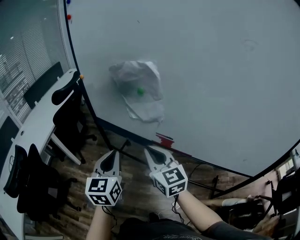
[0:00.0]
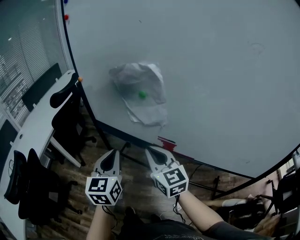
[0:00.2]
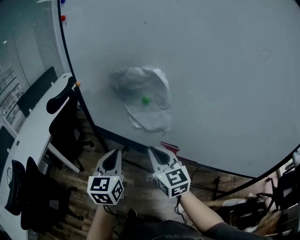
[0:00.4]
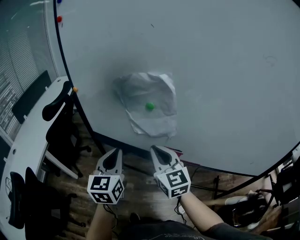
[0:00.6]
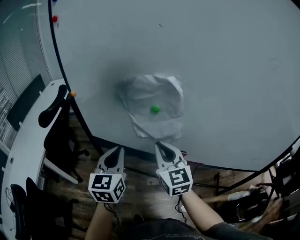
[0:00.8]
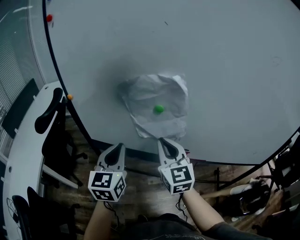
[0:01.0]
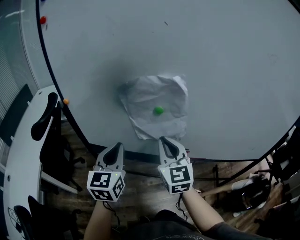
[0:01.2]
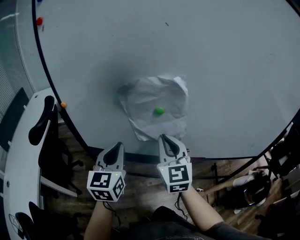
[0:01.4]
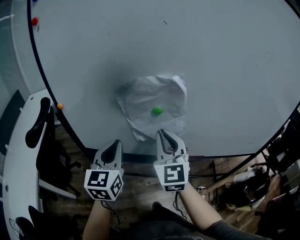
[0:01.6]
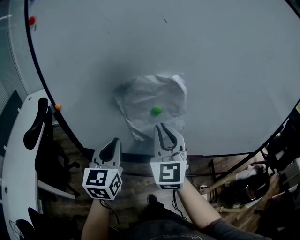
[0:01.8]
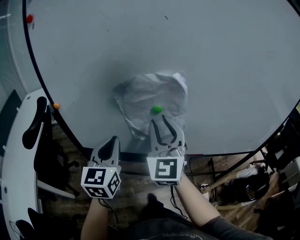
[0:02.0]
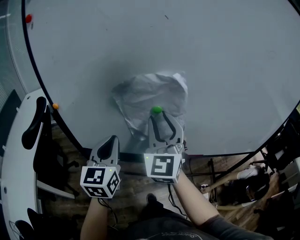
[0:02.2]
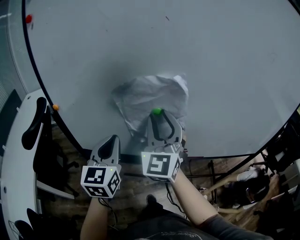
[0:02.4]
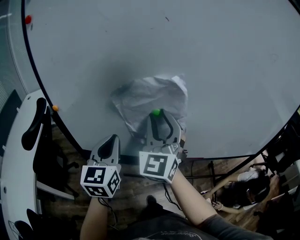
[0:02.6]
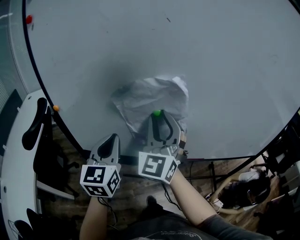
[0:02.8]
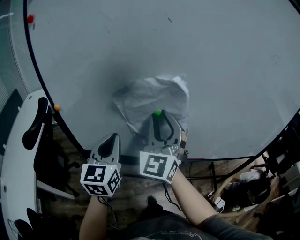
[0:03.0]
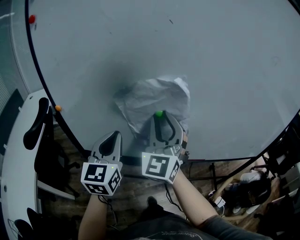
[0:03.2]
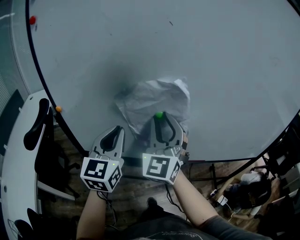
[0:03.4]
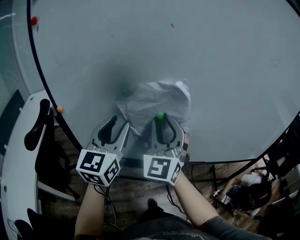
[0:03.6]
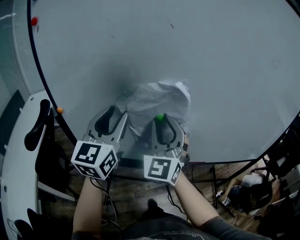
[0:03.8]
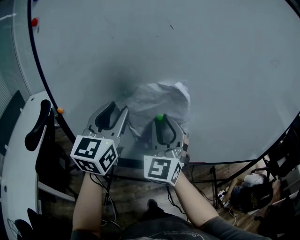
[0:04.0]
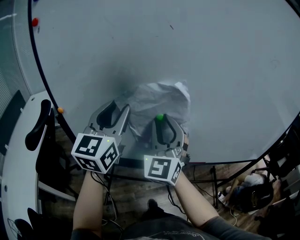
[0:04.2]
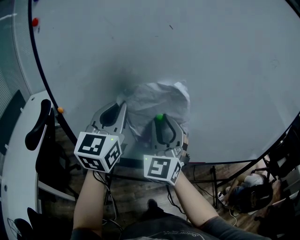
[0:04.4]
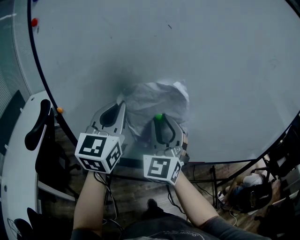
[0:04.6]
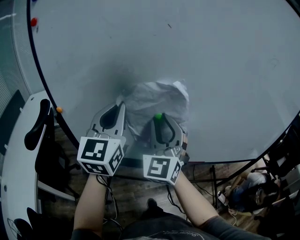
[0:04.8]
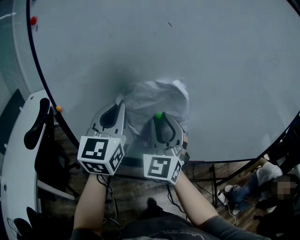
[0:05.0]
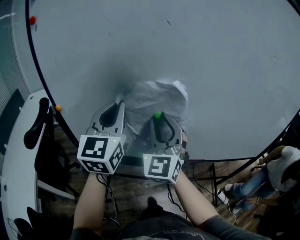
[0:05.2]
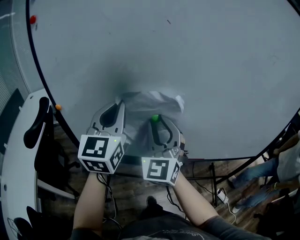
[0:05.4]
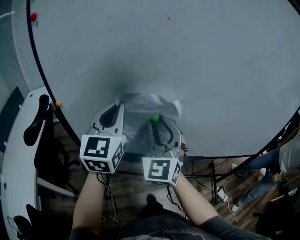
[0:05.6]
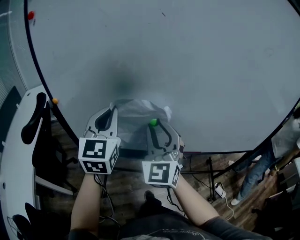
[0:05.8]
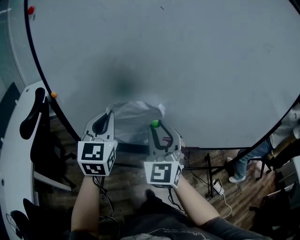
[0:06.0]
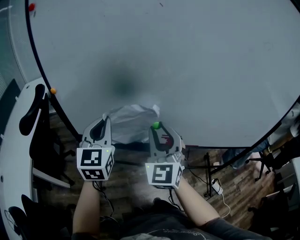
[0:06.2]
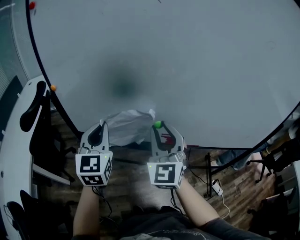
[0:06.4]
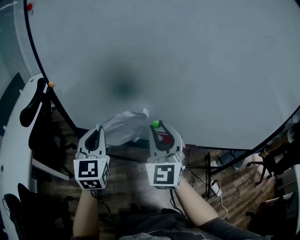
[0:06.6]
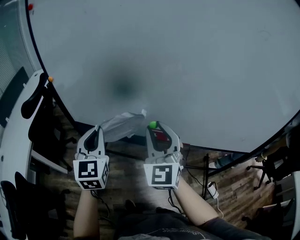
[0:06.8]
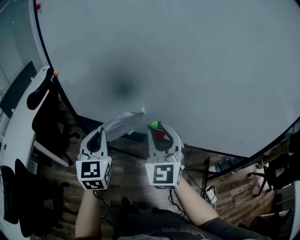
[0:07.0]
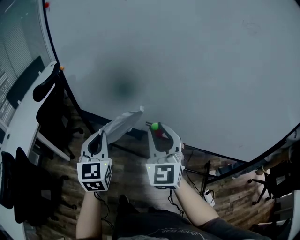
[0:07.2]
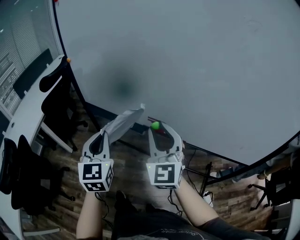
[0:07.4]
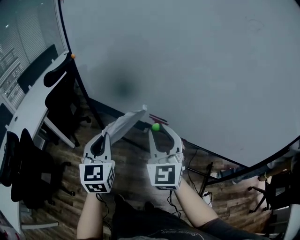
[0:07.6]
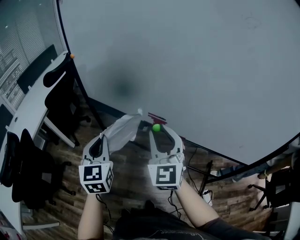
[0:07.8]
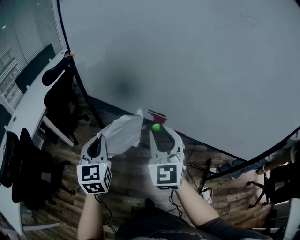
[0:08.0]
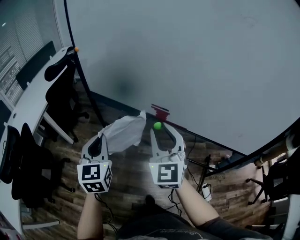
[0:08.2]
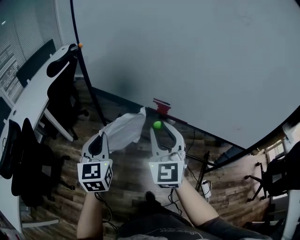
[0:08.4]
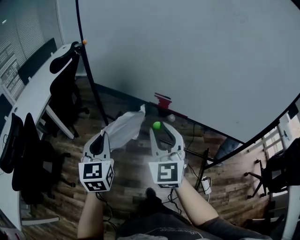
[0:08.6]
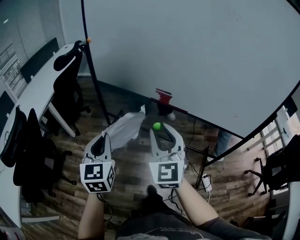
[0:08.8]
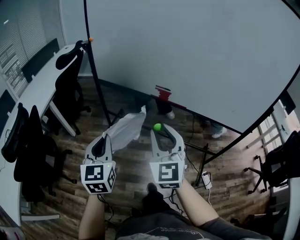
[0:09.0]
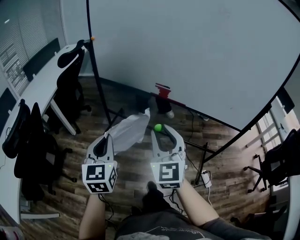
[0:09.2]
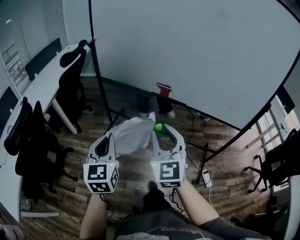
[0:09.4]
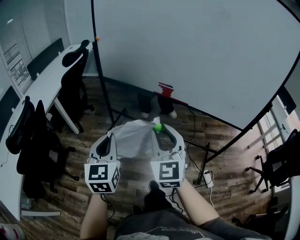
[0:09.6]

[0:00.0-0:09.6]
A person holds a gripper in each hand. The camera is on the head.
0:00.0 to 0:01.6: The right gripper changes place by approximately 15 cm, and swivels about 40 degrees, while the left gripper shifts by some 20 cm, and changes its angle by roughly 30 degrees.
0:01.6 to 0:03.2: The right gripper moves upward, approximately 5 cm, swivels roughly 20 degrees, and opens up.
0:03.2 to 0:04.8: The left gripper is displaced upward by about 10 cm, and opens, then closes again.
0:04.8 to 0:06.4: The grippers both shift downward and backward by about 15 cm.
0:06.4 to 0:08.0: The left gripper goes approximately 20 cm backward, and rotates about 30 degrees. The right gripper travels backward and to the right by about 15 cm, and swivels about 20 degrees.
0:08.0 to 0:09.6: Both grippers move backward, roughly 20 cm.

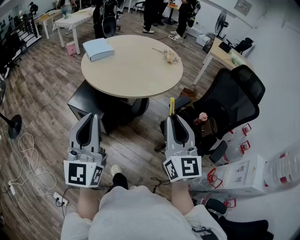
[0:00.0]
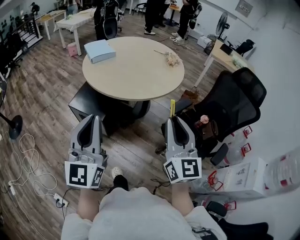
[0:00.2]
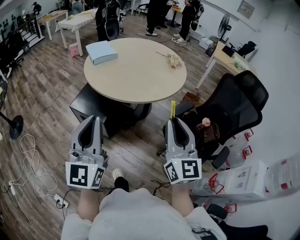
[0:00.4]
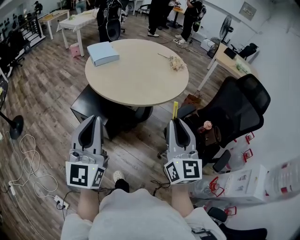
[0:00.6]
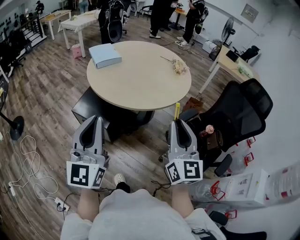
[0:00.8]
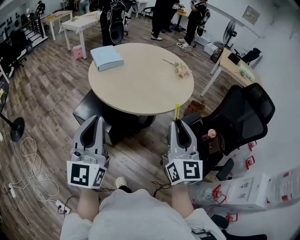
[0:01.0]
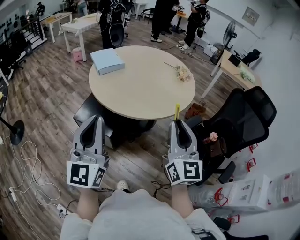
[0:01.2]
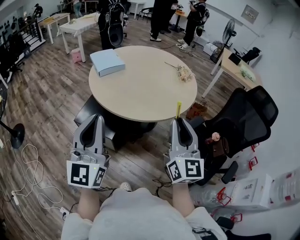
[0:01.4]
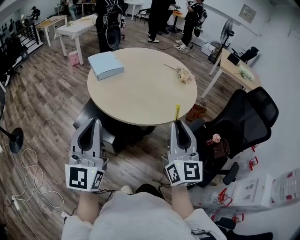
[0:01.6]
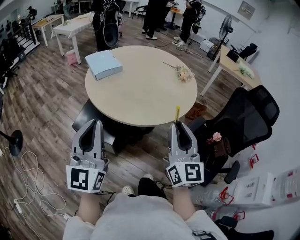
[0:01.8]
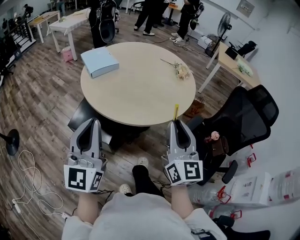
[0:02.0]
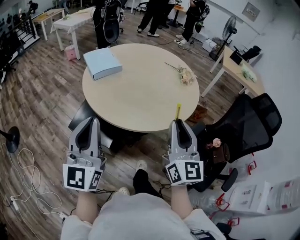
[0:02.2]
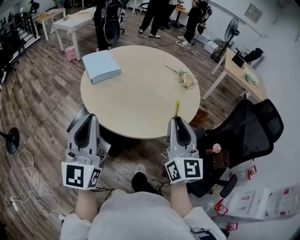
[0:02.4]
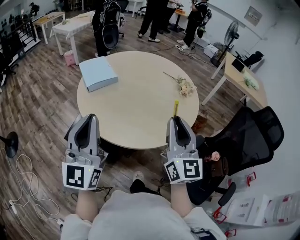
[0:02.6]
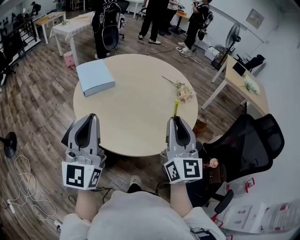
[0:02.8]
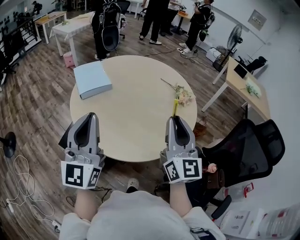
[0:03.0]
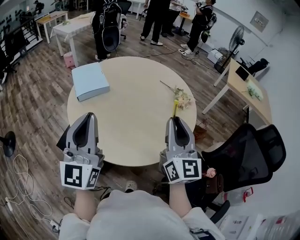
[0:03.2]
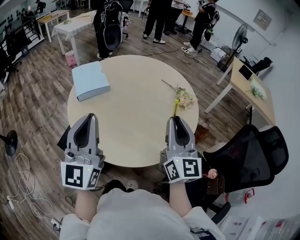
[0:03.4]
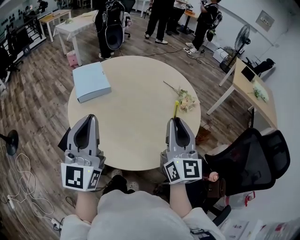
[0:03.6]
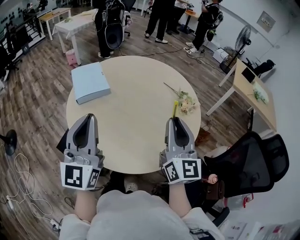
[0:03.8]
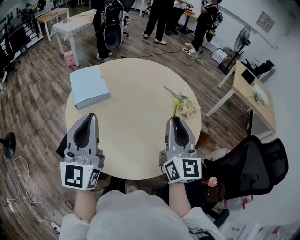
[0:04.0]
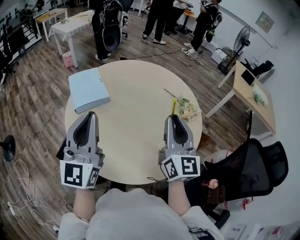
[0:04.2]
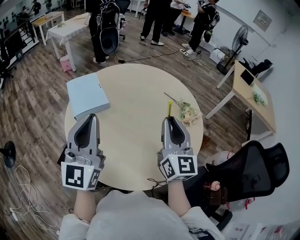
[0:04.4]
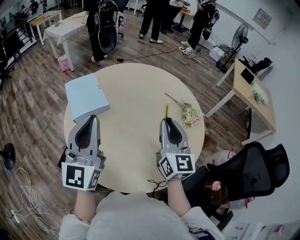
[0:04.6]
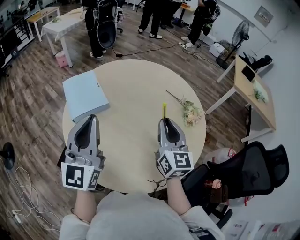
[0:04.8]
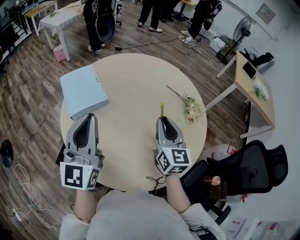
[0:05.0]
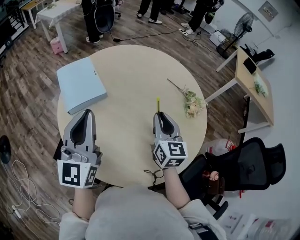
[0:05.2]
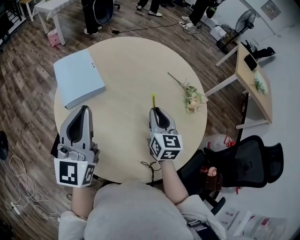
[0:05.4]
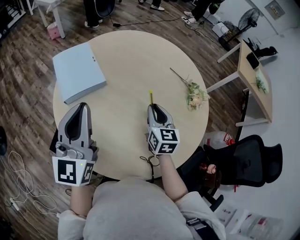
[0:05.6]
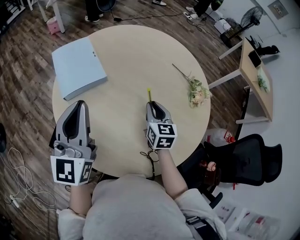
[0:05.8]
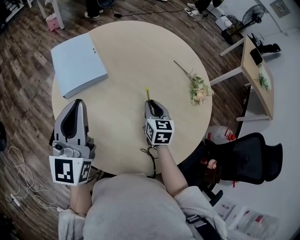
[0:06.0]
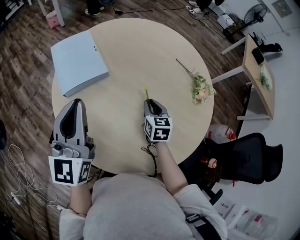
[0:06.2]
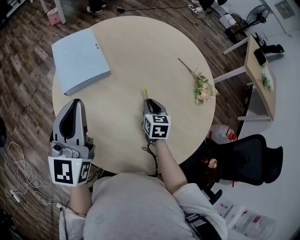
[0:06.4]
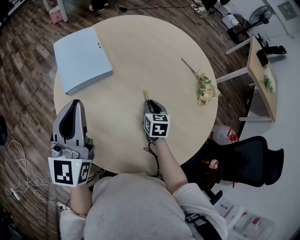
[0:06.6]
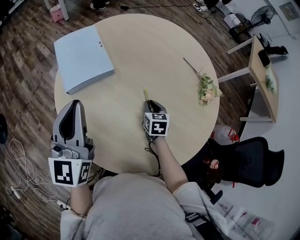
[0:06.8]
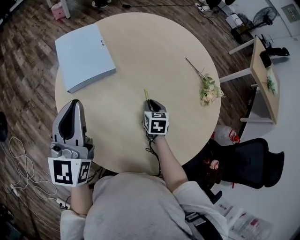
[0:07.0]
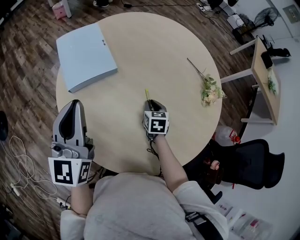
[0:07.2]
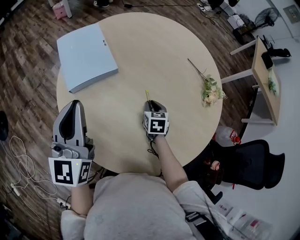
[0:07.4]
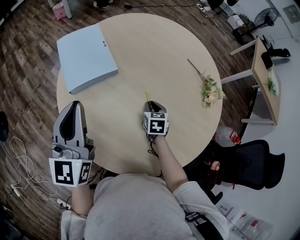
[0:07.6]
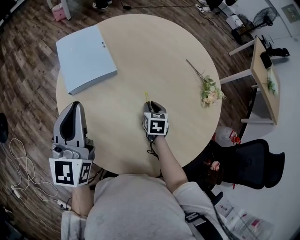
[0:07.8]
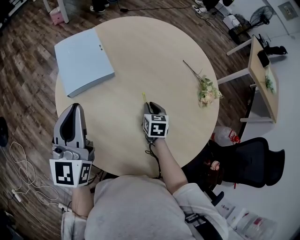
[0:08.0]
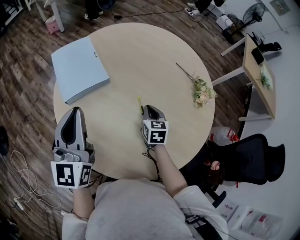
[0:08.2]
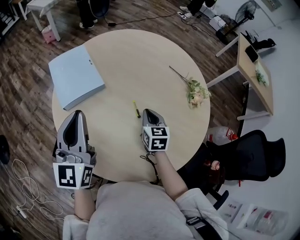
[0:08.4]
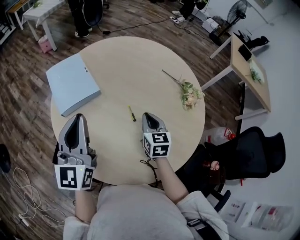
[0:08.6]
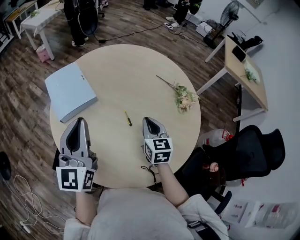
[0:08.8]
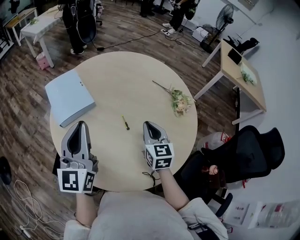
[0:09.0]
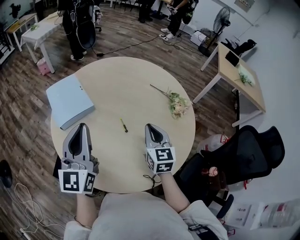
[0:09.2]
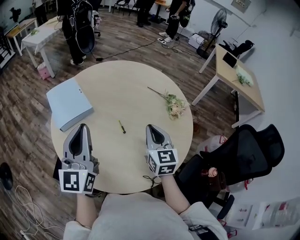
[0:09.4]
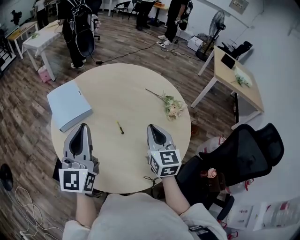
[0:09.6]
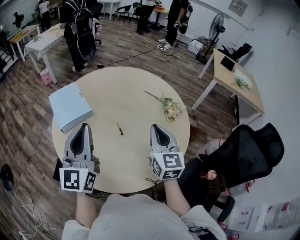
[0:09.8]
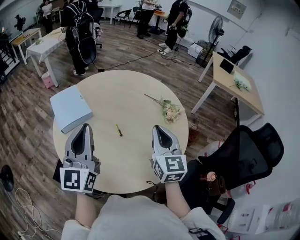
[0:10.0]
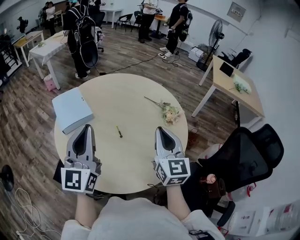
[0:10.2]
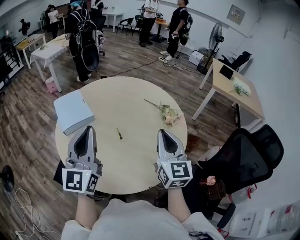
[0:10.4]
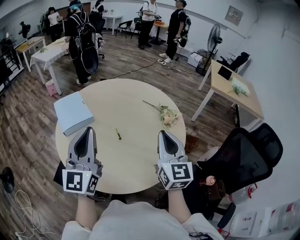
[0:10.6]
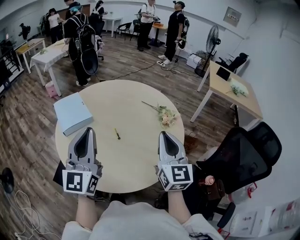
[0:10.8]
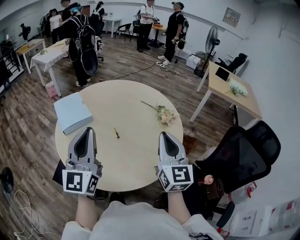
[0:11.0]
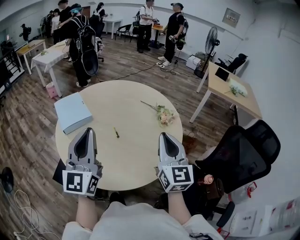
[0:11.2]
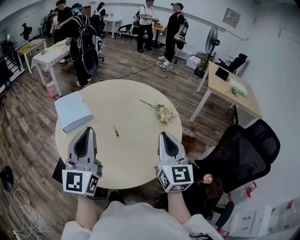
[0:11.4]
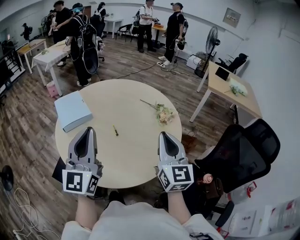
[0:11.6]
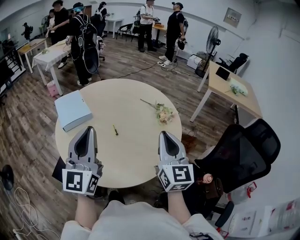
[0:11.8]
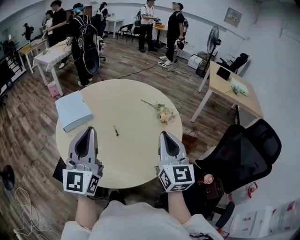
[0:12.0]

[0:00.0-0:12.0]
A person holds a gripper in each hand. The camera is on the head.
0:00.0 to 0:01.6: The grippers both shift forward and to the left by roughly 20 cm.
0:01.6 to 0:03.0: The grippers both shift forward by approximately 25 cm.
0:03.0 to 0:04.4: Both grippers travel together forward, about 20 cm.
0:04.4 to 0:06.0: The left gripper goes about 15 cm downward, forward and to the left. Meanwhile the right gripper is displaced downward and forward by approximately 30 cm, and tilts its fingers approximately 40 degrees downward.
0:06.0 to 0:07.6: The right gripper moves downward, roughly 10 cm; the left gripper shifts by about 5 cm.
0:07.6 to 0:09.0: The right gripper moves upward, approximately 20 cm, and changes its angle by roughly 30 degrees. Meanwhile the left gripper shifts roughly 10 cm to the right and upward.
0:09.0 to 0:10.4: The left gripper moves backward, to the right and upward, about 15 cm. Meanwhile the right gripper moves upward, backward and to the right, about 25 cm, and swivels roughly 20 degrees.
0:10.4 to 0:12.0: The two grippers go approximately 5 cm backward.

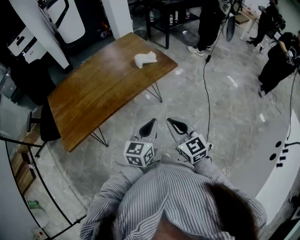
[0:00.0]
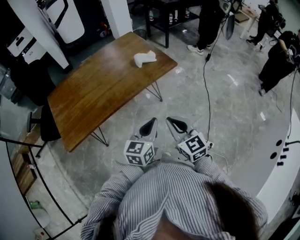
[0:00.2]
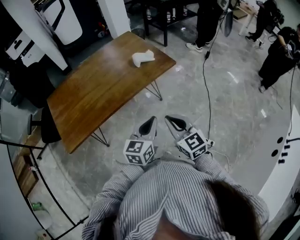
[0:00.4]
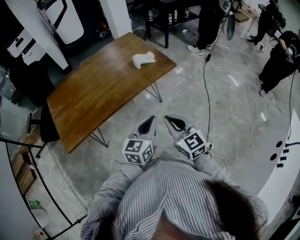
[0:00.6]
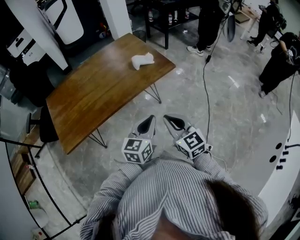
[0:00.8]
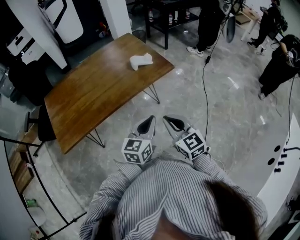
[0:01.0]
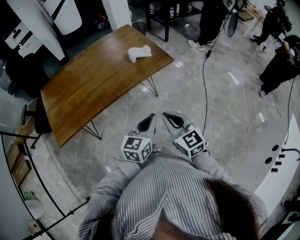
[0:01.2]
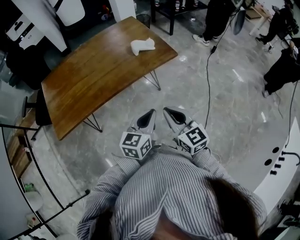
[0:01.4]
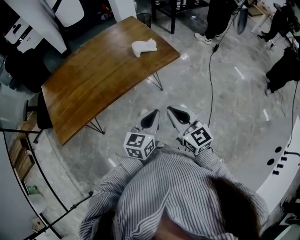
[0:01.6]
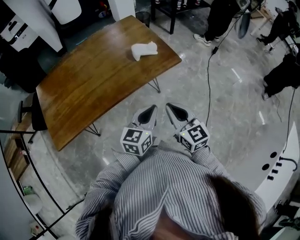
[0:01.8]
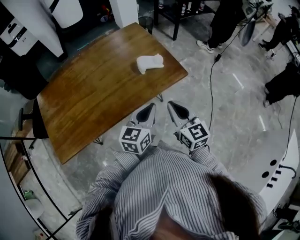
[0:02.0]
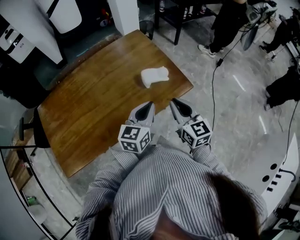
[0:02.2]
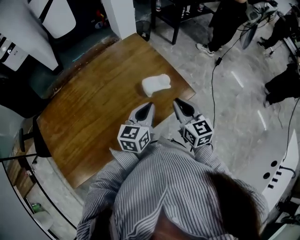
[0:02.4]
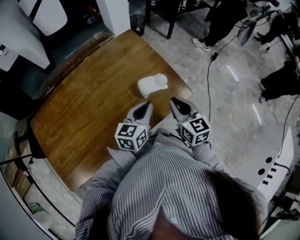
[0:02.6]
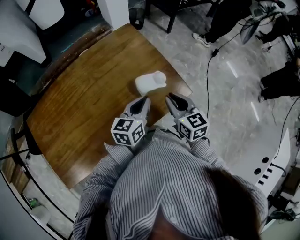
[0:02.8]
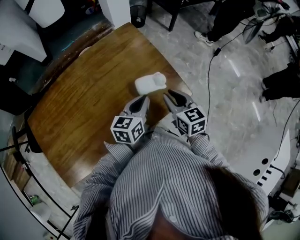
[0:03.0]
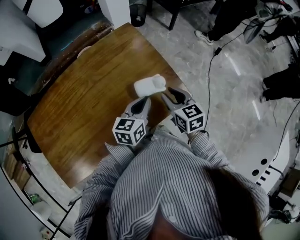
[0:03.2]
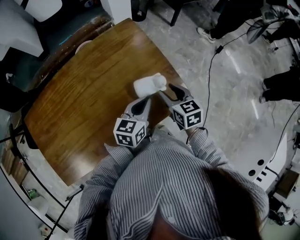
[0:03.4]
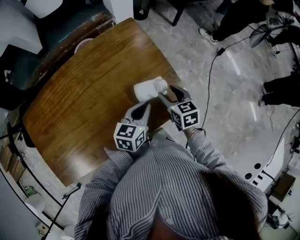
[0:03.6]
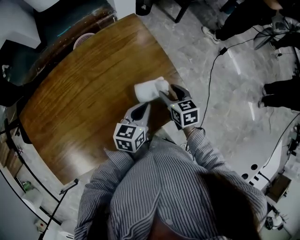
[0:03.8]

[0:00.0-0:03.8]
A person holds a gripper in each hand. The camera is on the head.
0:00.0 to 0:01.2: The left gripper goes about 5 cm to the right. Meanwhile the right gripper changes place by roughly 5 cm.
0:01.2 to 0:02.6: The grippers both shift forward by roughly 40 cm.
0:02.6 to 0:03.8: The left gripper heads downward and forward, covering about 10 cm. The right gripper moves downward and forward, about 20 cm, changes its angle by roughly 20 degrees, and opens.
